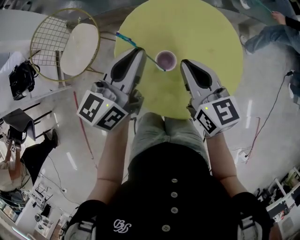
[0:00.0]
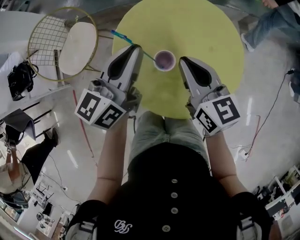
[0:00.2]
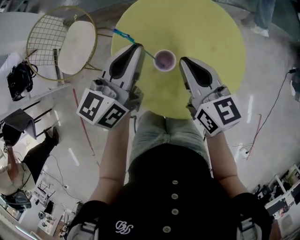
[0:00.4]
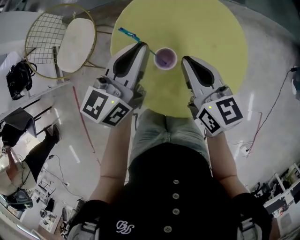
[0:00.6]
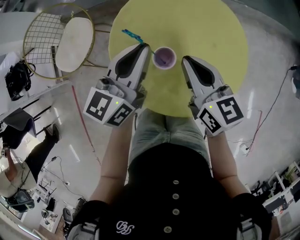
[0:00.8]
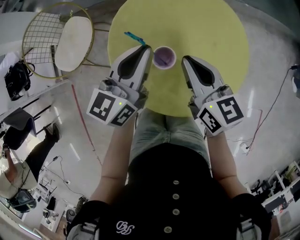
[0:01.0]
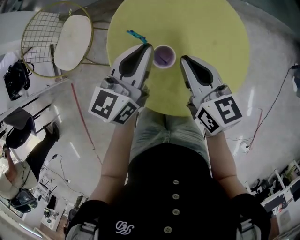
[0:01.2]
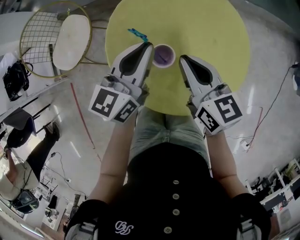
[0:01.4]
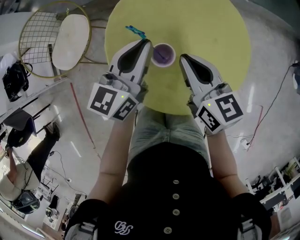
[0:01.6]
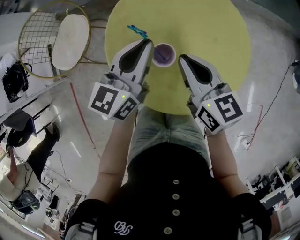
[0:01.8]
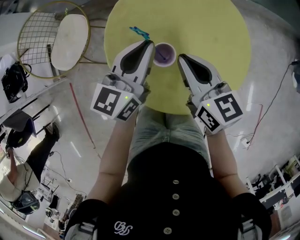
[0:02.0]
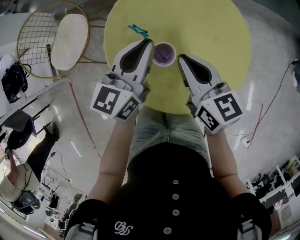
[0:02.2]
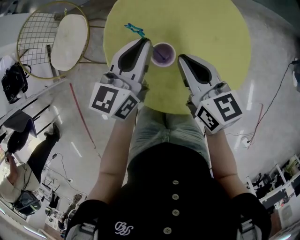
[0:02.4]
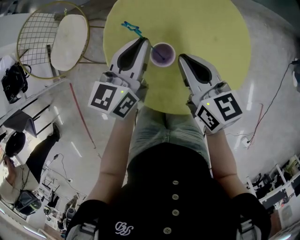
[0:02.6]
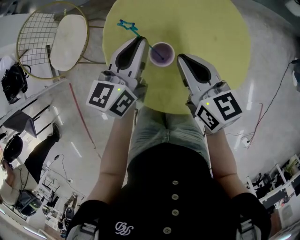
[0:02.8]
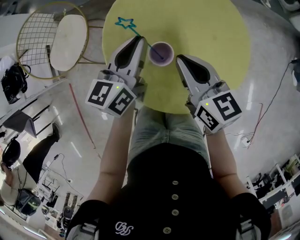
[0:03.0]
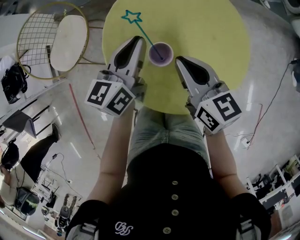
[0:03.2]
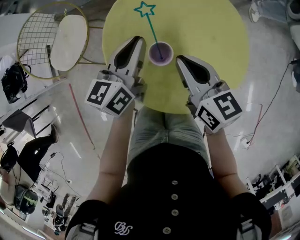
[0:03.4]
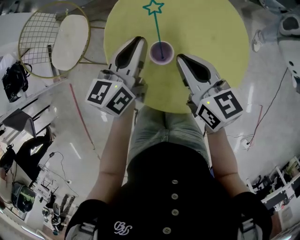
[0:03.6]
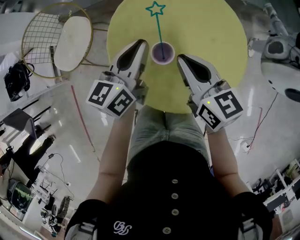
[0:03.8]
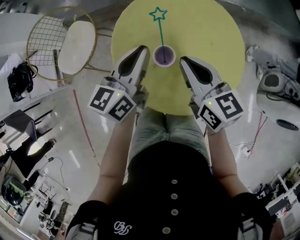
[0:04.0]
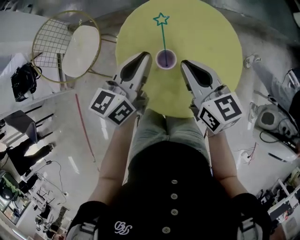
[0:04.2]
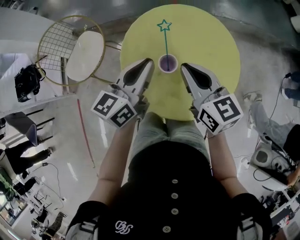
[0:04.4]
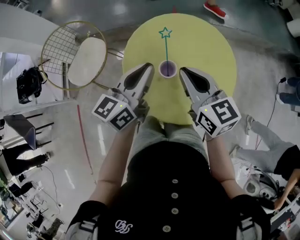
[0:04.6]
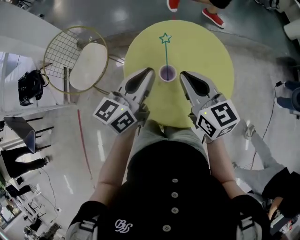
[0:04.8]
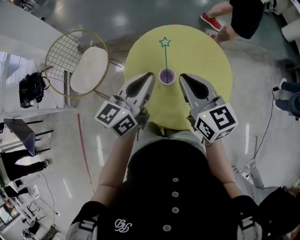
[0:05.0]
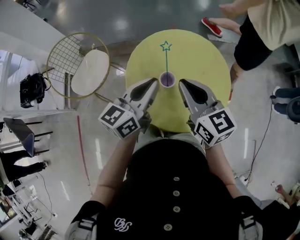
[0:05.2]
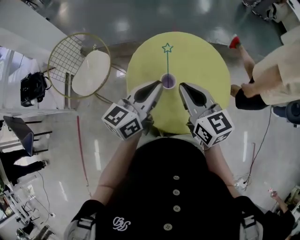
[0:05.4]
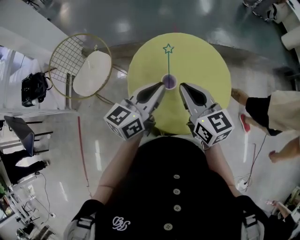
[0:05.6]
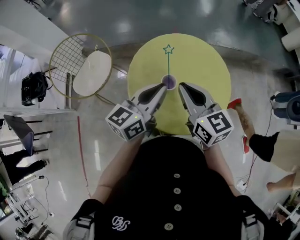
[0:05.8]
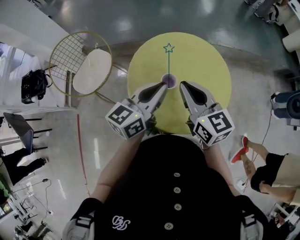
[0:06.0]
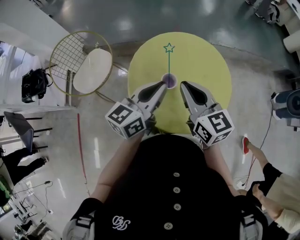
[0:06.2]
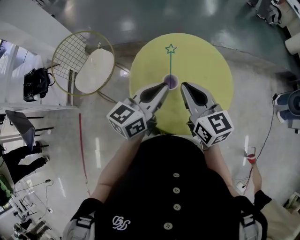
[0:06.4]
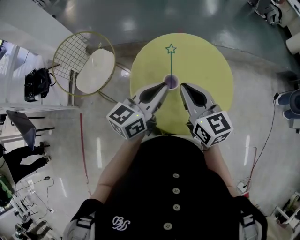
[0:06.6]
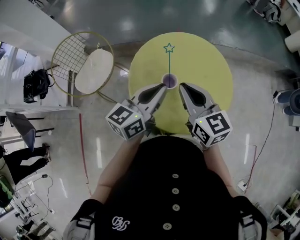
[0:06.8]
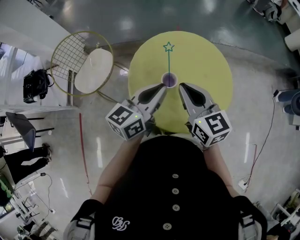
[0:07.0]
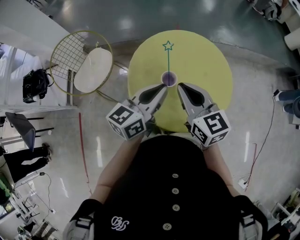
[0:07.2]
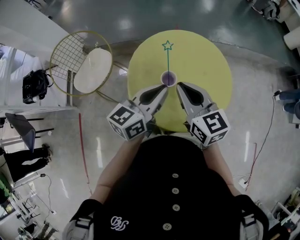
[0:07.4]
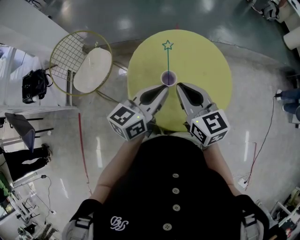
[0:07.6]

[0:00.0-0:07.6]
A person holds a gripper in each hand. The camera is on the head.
0:00.0 to 0:01.6: The left gripper moves downward, approximately 10 cm. Meanwhile the right gripper changes place by roughly 5 cm.
0:01.6 to 0:03.0: The grippers stay close to where they were, moving slightly.
0:03.0 to 0:04.6: The left gripper heads upward and backward, covering approximately 10 cm. Meanwhile the right gripper goes approximately 10 cm upward.
0:04.6 to 0:06.0: The grippers move only a little.
0:06.0 to 0:07.6: The grippers move only a little.

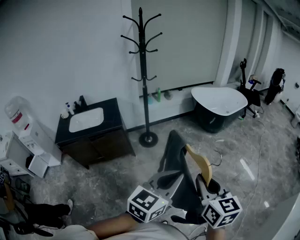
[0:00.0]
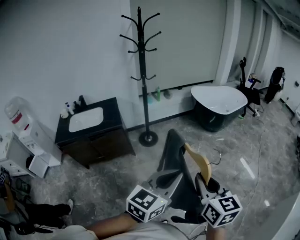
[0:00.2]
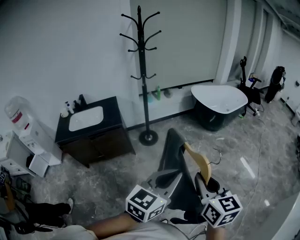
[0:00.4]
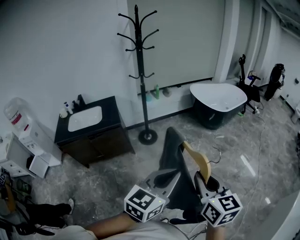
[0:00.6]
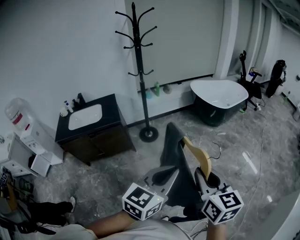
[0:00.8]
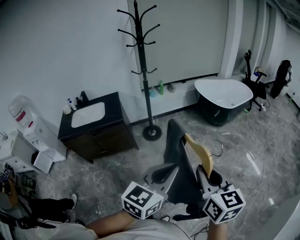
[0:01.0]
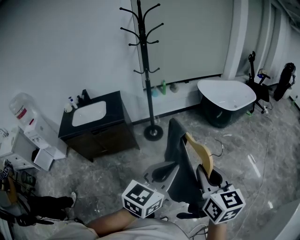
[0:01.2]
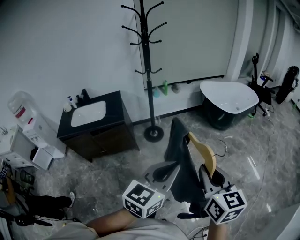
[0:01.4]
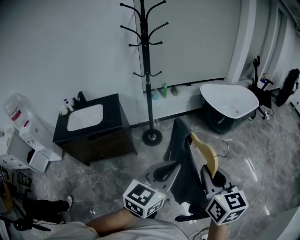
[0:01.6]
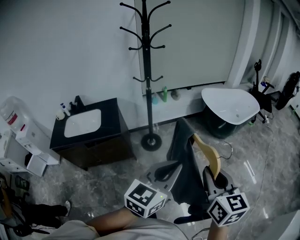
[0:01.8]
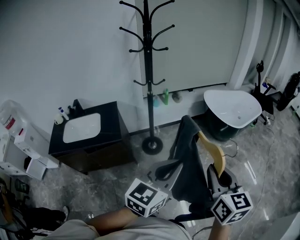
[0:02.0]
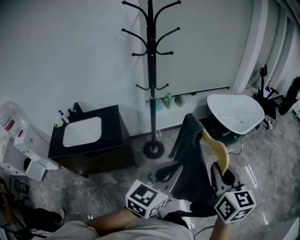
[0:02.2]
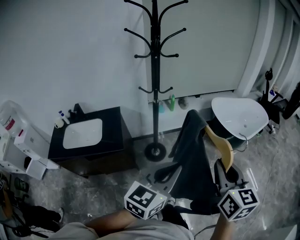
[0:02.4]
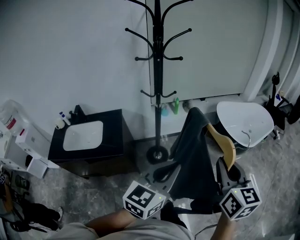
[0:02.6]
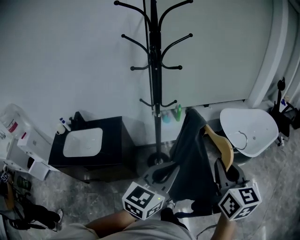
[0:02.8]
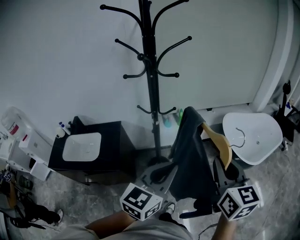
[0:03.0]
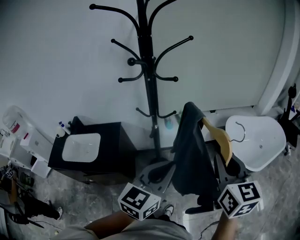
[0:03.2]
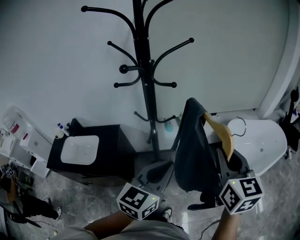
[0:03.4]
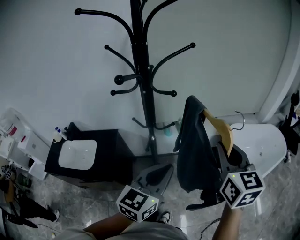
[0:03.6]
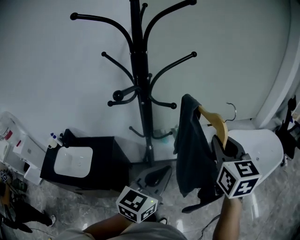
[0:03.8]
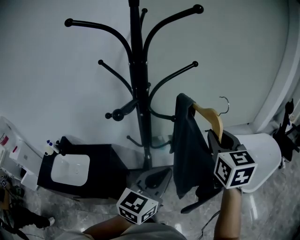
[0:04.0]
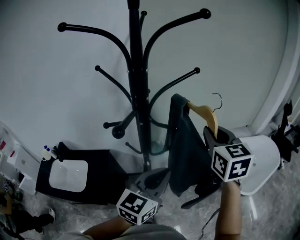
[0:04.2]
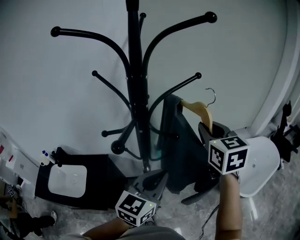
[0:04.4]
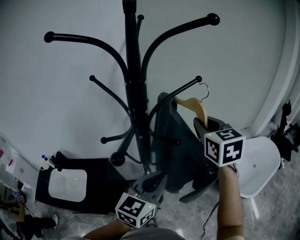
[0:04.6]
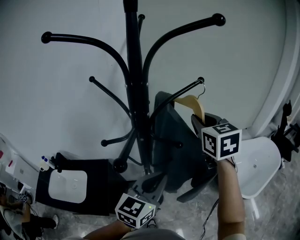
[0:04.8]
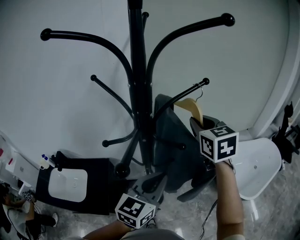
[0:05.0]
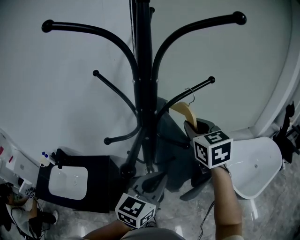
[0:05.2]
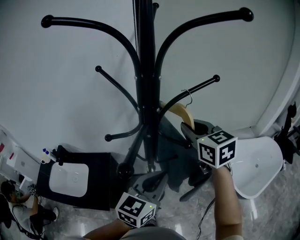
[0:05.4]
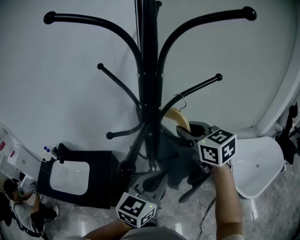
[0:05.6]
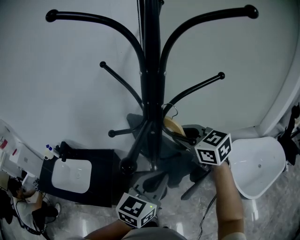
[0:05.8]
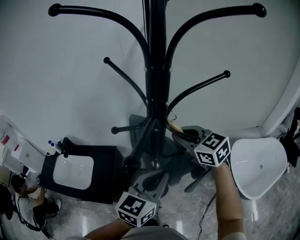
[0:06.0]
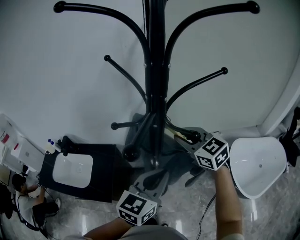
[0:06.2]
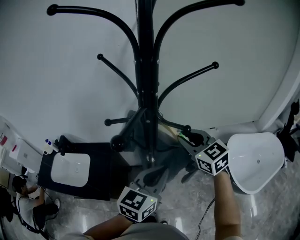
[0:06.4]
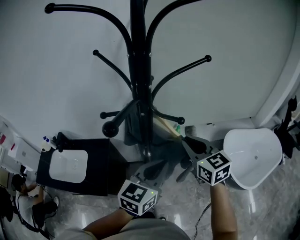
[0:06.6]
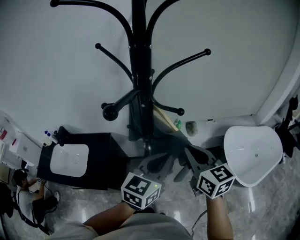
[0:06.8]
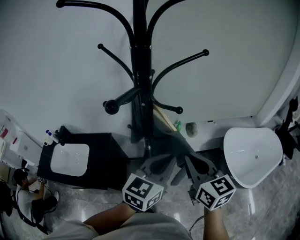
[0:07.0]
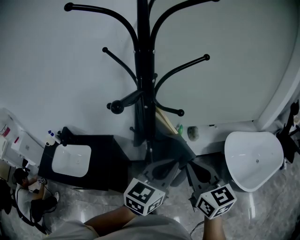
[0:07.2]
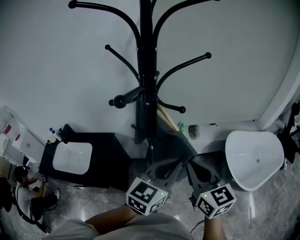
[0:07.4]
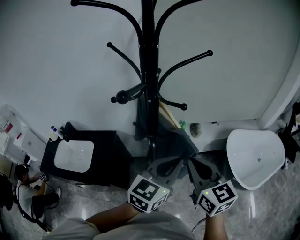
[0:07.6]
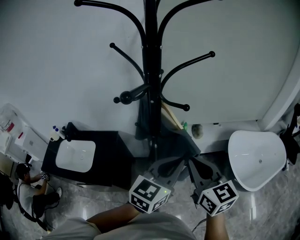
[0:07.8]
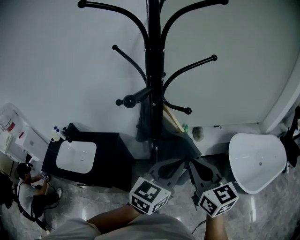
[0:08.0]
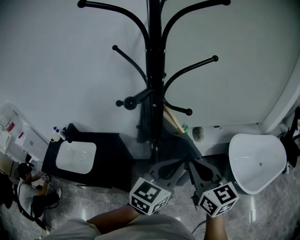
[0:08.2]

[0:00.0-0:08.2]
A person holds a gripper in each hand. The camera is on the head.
0:00.0 to 0:01.6: Both grippers travel together forward, roughly 15 cm.
0:01.6 to 0:03.2: The two grippers travel together, forward, roughly 50 cm.
0:03.2 to 0:05.0: The left gripper moves forward, some 25 cm; the right gripper is displaced forward and to the left by about 40 cm.
0:05.0 to 0:06.6: The right gripper goes some 15 cm downward and backward.
0:06.6 to 0:08.2: The left gripper changes place by some 5 cm, while the right gripper travels backward by roughly 15 cm.

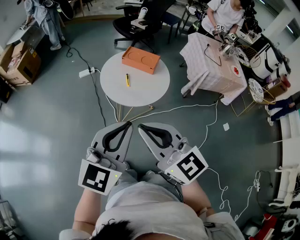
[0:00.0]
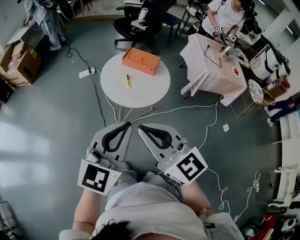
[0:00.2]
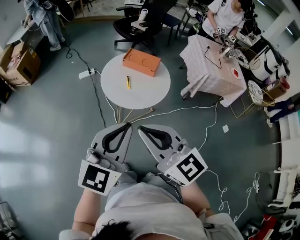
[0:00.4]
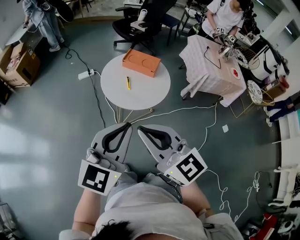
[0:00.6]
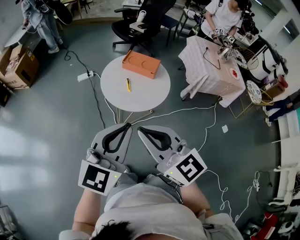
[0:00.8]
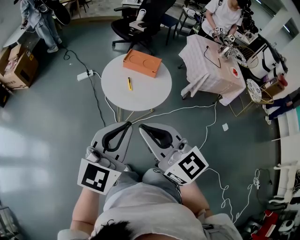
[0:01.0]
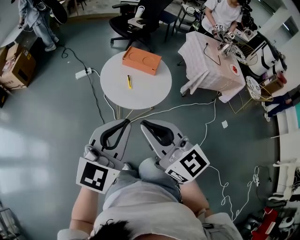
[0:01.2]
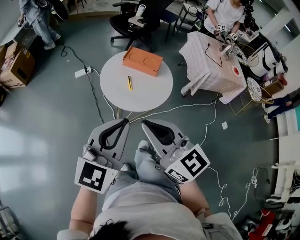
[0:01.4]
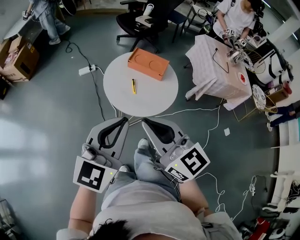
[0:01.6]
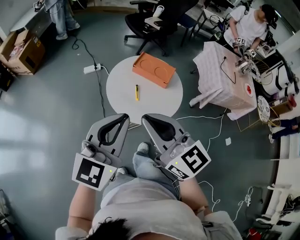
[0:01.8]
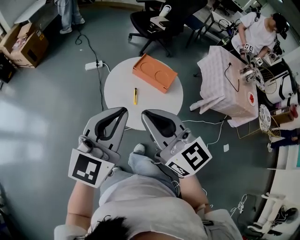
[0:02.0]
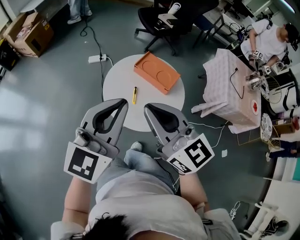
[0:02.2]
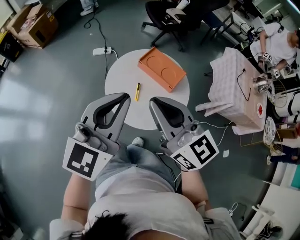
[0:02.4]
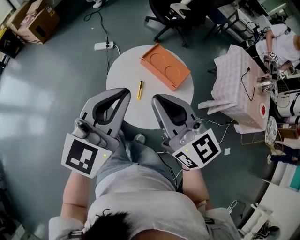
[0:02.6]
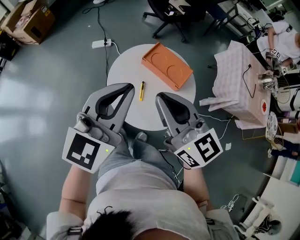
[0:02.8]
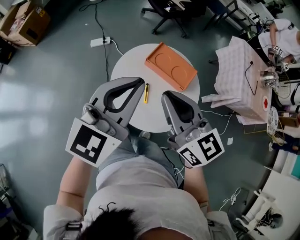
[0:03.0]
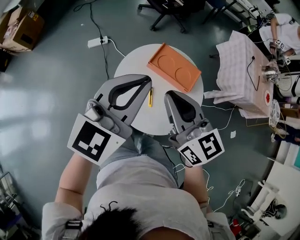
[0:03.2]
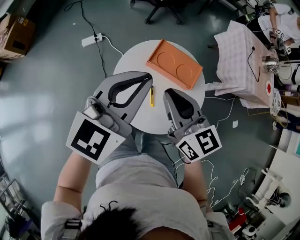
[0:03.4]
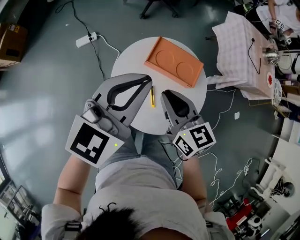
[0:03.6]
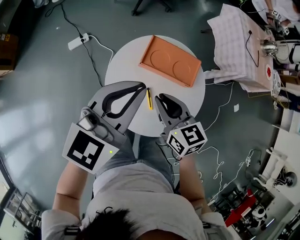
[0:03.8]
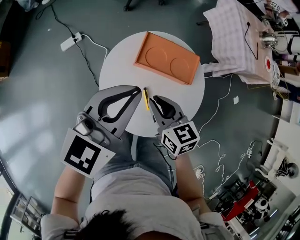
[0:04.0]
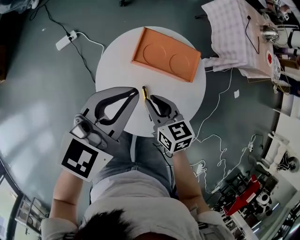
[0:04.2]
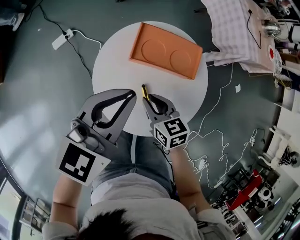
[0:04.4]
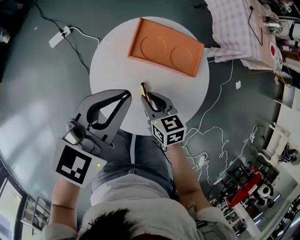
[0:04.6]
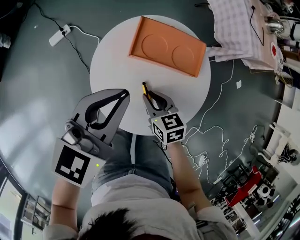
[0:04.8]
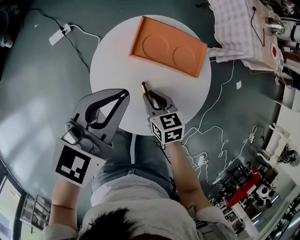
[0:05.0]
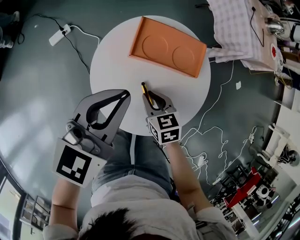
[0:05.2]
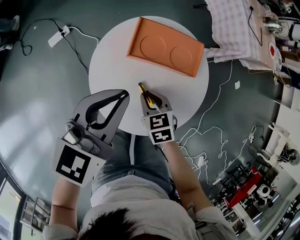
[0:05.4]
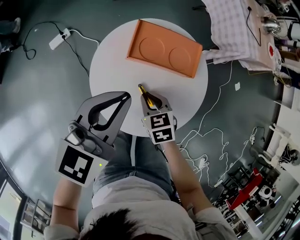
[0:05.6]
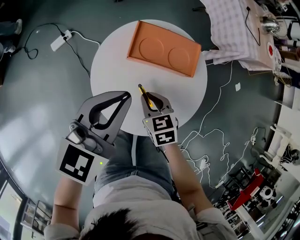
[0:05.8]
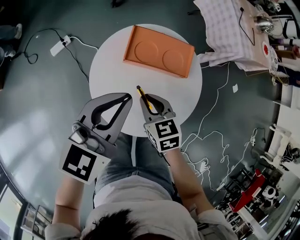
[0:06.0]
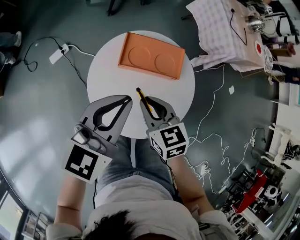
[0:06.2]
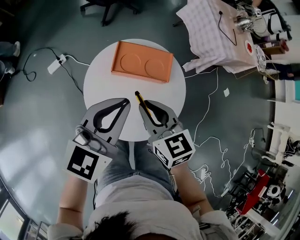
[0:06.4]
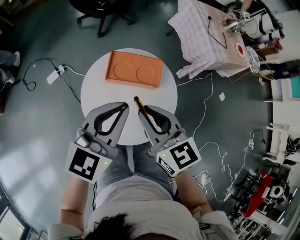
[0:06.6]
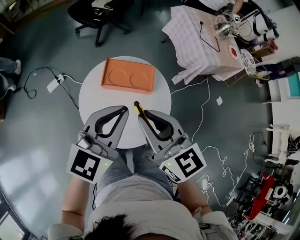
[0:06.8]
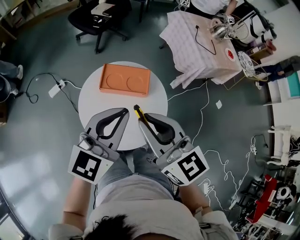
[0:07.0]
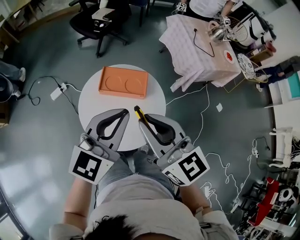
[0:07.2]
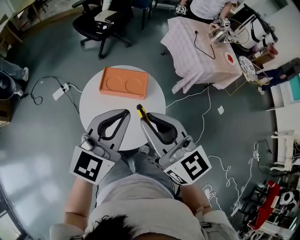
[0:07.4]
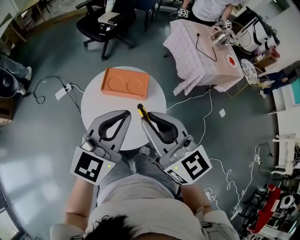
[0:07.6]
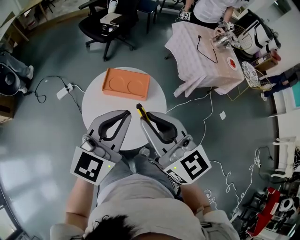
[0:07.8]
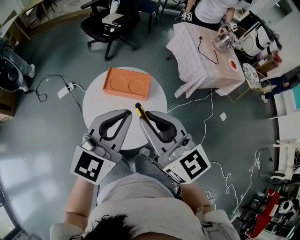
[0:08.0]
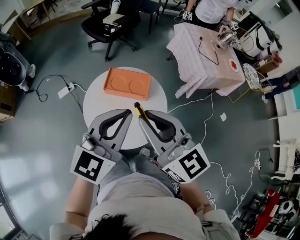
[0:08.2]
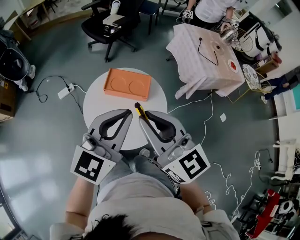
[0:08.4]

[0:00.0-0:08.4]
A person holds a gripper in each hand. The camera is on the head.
0:00.0 to 0:01.4: Both grippers move forward, approximately 5 cm.
0:01.4 to 0:02.8: Both grippers move forward, about 25 cm.
0:02.8 to 0:04.2: The left gripper shifts by roughly 20 cm, and changes its angle by some 30 degrees. Meanwhile the right gripper moves downward, about 25 cm, and angles its fingers downward, by about 30 degrees.
0:04.2 to 0:05.6: The right gripper travels downward by approximately 10 cm.
0:05.6 to 0:07.0: The left gripper is displaced upward, to the right and backward by approximately 15 cm. Meanwhile the right gripper heads upward, covering some 35 cm, and points its fingers roughly 50 degrees further upward.
0:07.0 to 0:08.4: The left gripper moves some 5 cm. Meanwhile the right gripper ends up approximately 5 cm from where it was.
